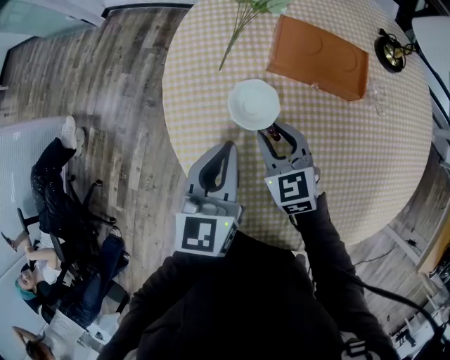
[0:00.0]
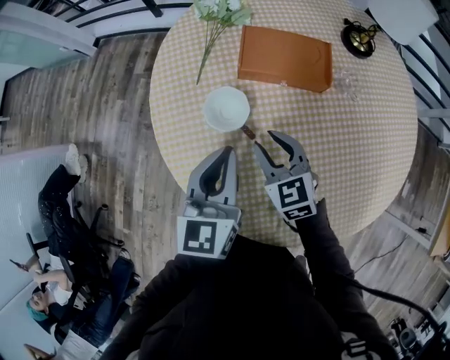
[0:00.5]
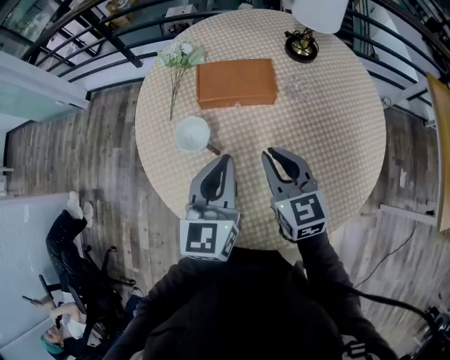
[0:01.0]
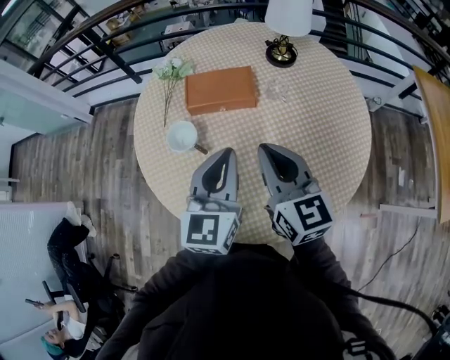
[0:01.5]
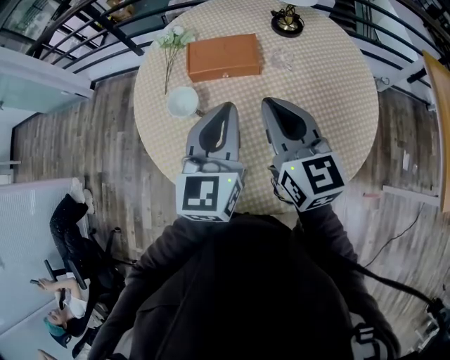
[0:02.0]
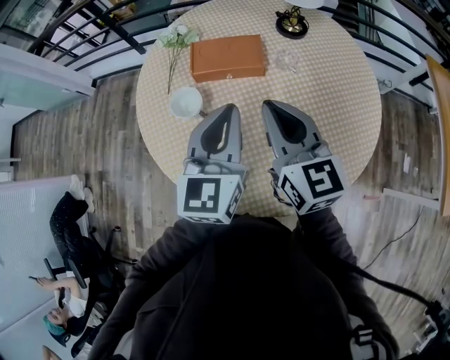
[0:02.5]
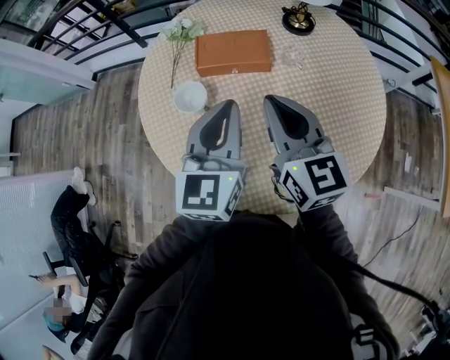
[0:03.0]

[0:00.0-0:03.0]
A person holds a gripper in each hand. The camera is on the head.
0:00.0 to 0:01.5: The right gripper shifts roughly 30 cm upward, to the right and backward, and rotates about 40 degrees. The left gripper goes roughly 25 cm to the right and upward, and rotates about 20 degrees.
0:01.5 to 0:03.0: The grippers move only a little.

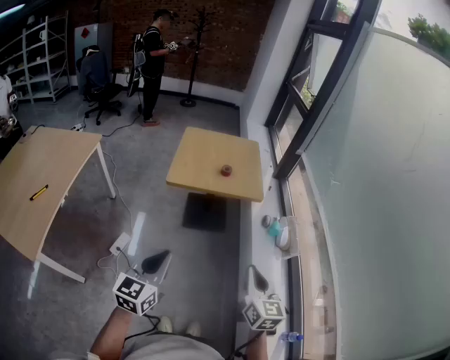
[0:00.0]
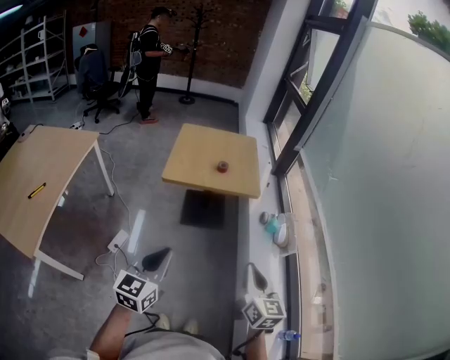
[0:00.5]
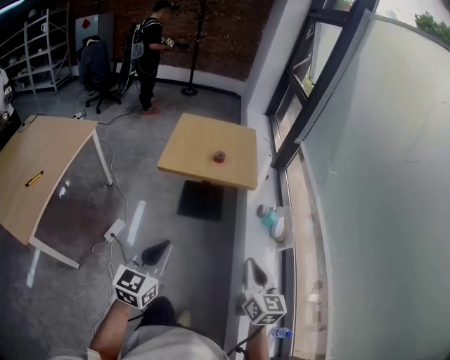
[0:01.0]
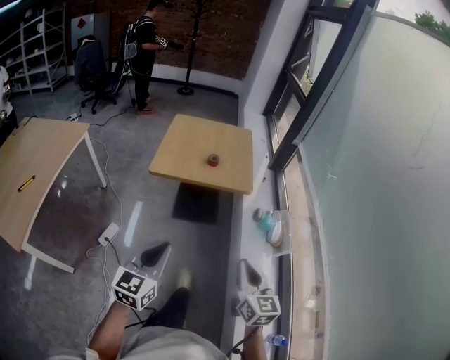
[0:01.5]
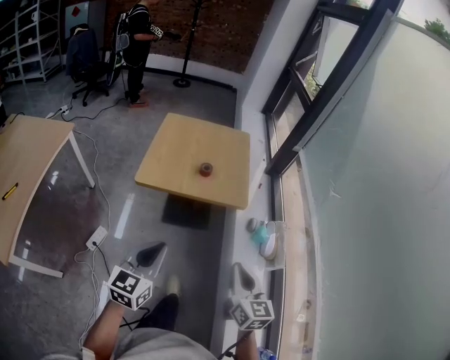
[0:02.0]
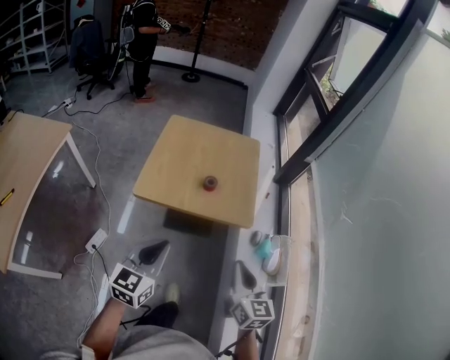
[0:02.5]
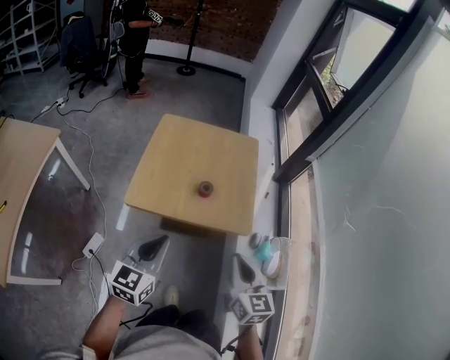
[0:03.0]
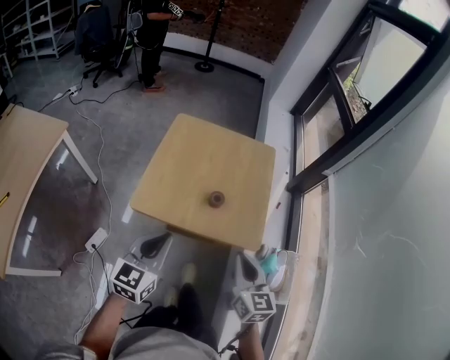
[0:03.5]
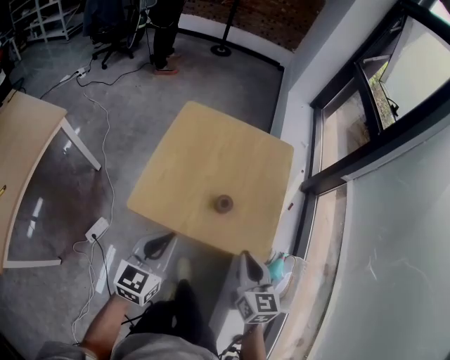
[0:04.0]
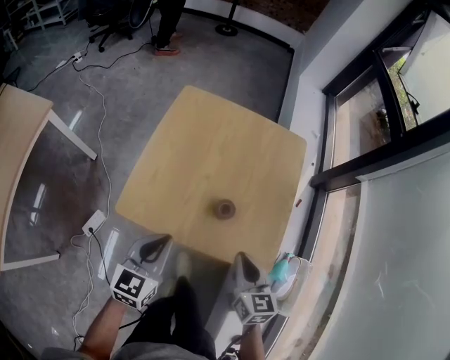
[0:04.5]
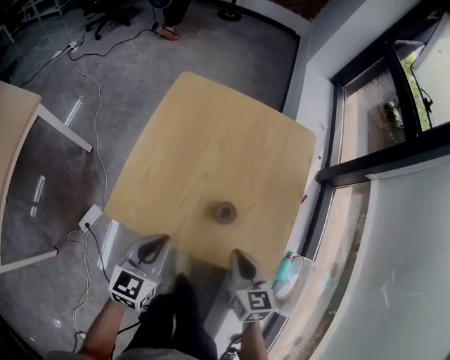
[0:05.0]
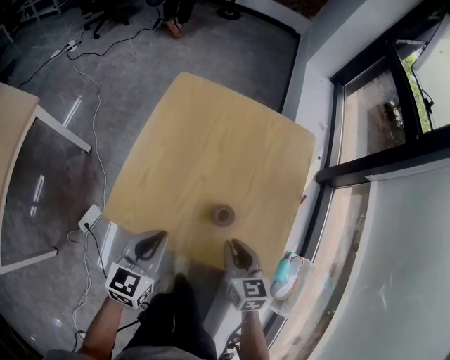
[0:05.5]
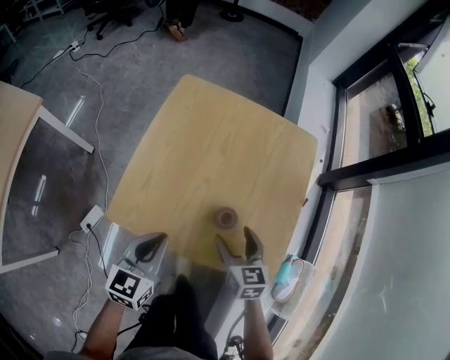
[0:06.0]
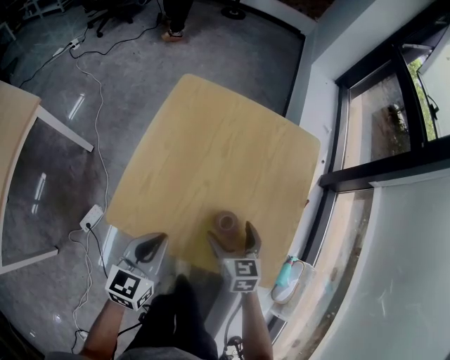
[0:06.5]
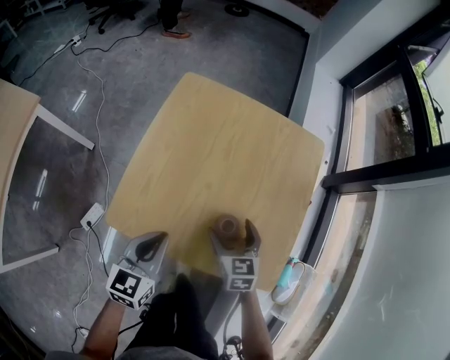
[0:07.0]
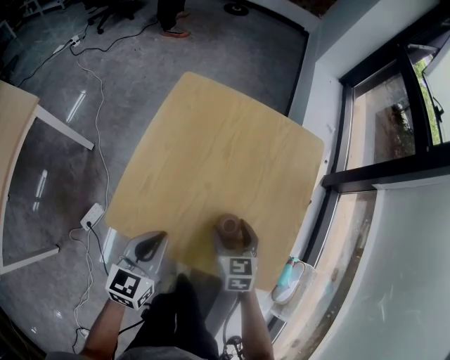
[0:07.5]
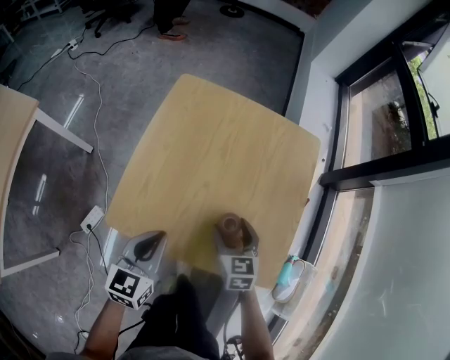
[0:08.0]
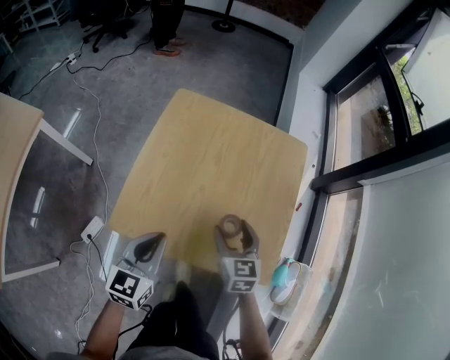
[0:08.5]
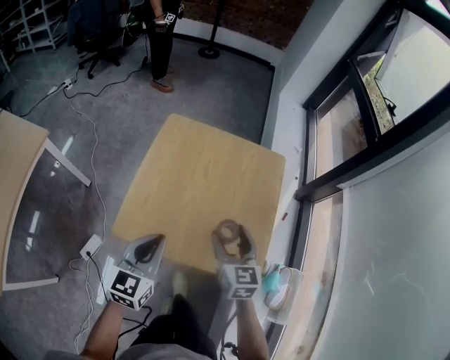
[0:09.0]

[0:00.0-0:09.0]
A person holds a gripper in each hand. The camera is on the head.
0:00.0 to 0:02.0: The right gripper shifts about 15 cm forward. Meanwhile the left gripper goes approximately 20 cm forward and to the right.
0:02.0 to 0:04.5: The two grippers go about 40 cm forward and downward. The right gripper changes its angle by approximately 20 degrees.
0:04.5 to 0:07.0: The left gripper heads forward and downward, covering about 10 cm, while the right gripper is displaced forward and downward by some 20 cm, and opens its fingers.
0:07.0 to 0:09.0: Both grippers travel together upward, roughly 15 cm.

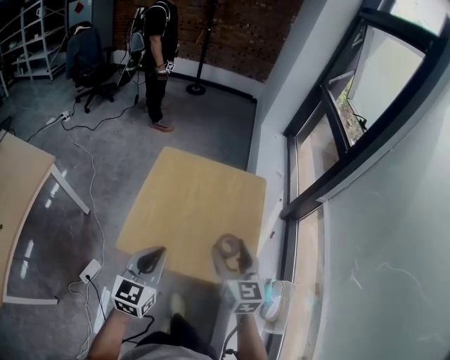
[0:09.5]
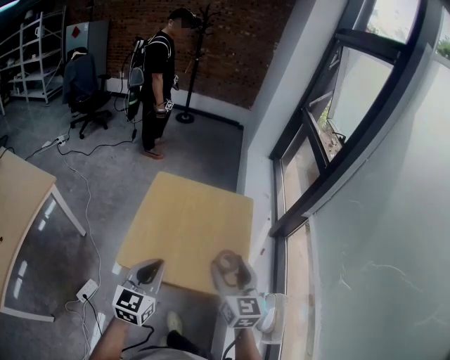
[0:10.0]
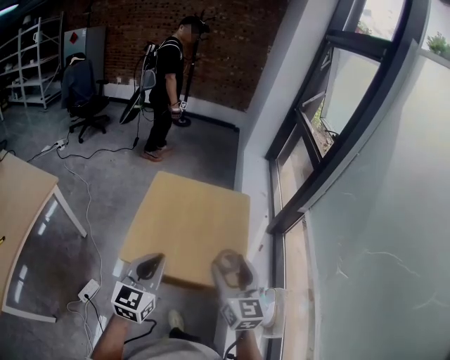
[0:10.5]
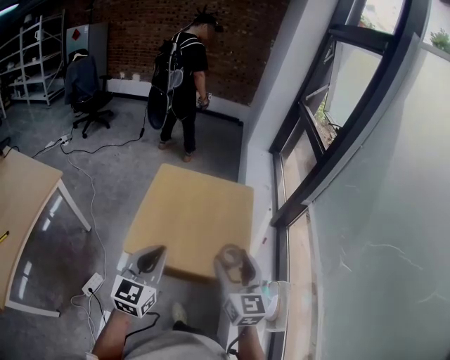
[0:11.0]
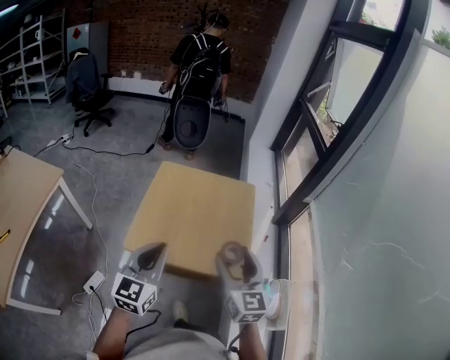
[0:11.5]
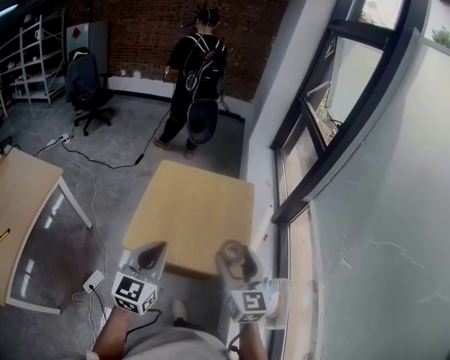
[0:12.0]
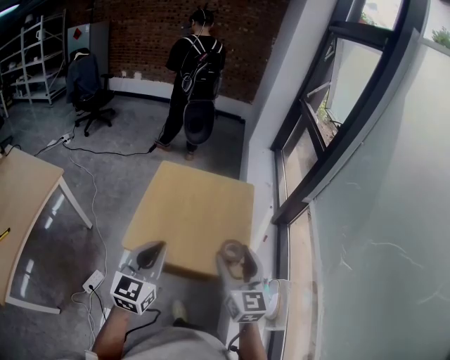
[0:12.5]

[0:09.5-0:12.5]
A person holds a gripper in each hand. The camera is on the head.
0:09.5 to 0:11.0: The left gripper is displaced upward and backward by approximately 10 cm. Meanwhile the right gripper heads backward and upward, covering approximately 15 cm.
0:11.0 to 0:12.5: There are only small adjustments of the grippers.

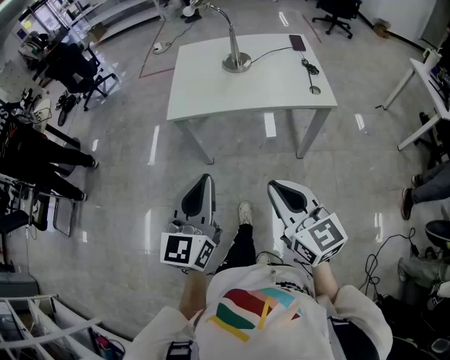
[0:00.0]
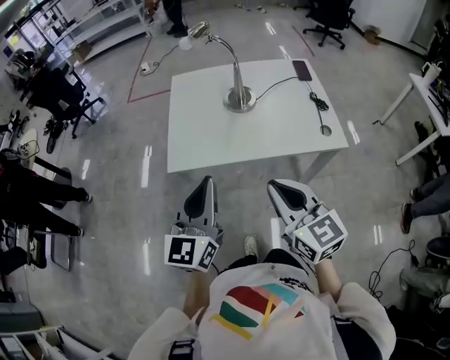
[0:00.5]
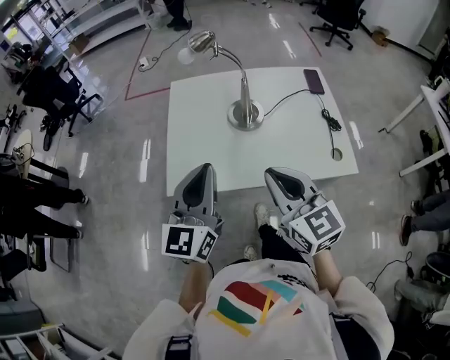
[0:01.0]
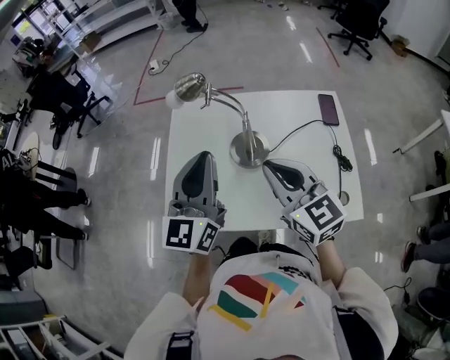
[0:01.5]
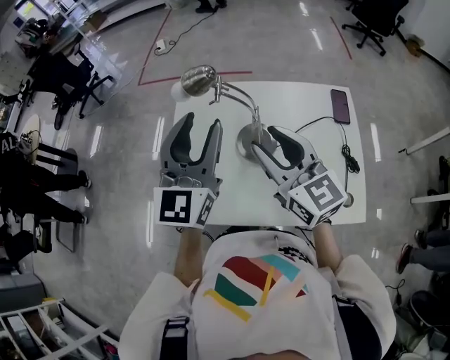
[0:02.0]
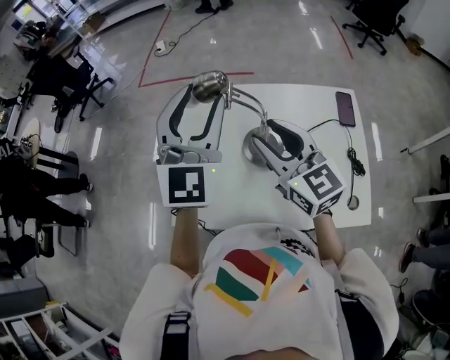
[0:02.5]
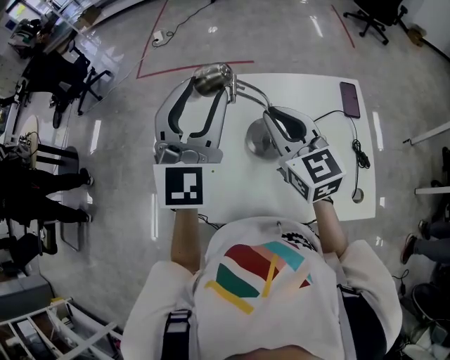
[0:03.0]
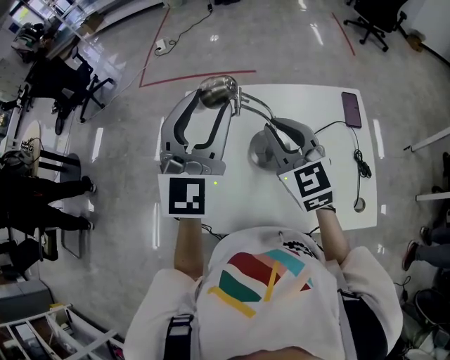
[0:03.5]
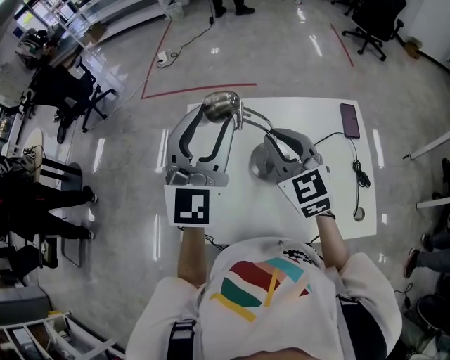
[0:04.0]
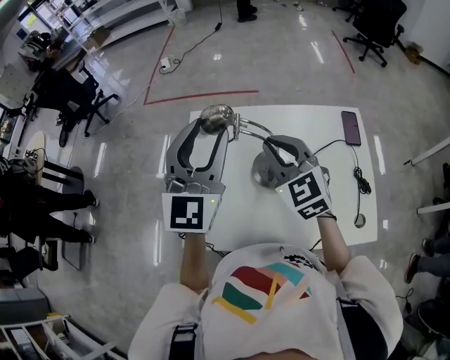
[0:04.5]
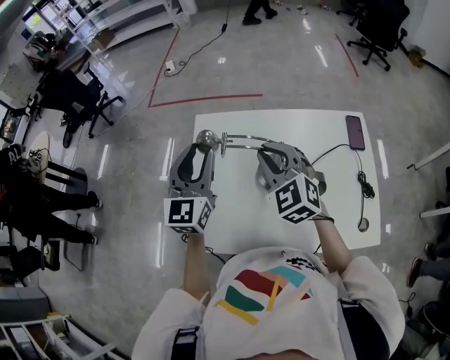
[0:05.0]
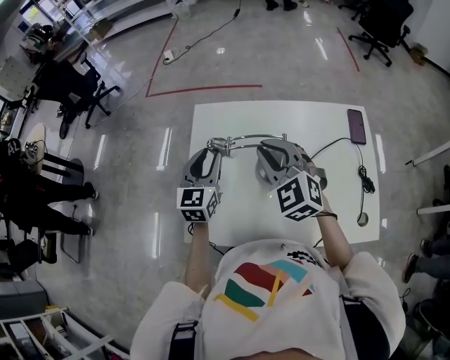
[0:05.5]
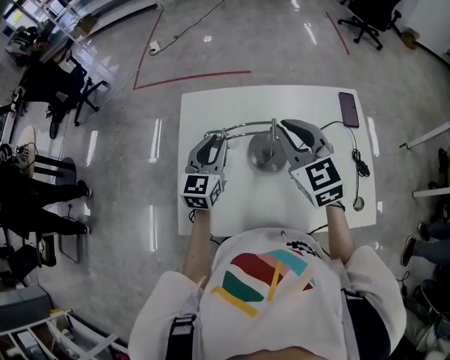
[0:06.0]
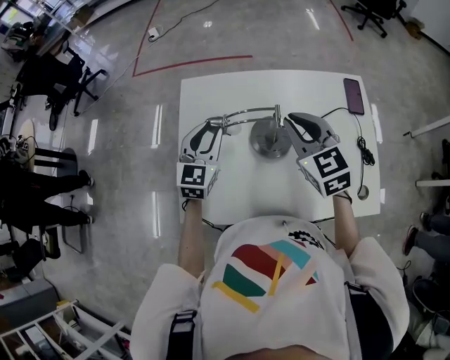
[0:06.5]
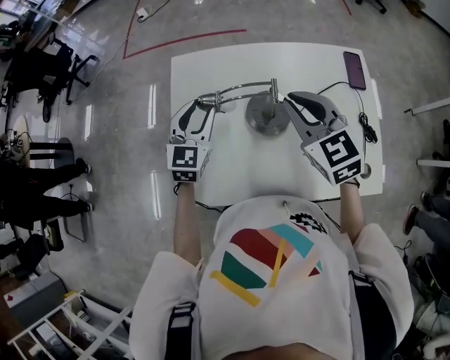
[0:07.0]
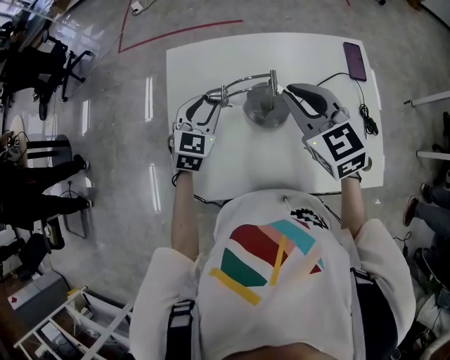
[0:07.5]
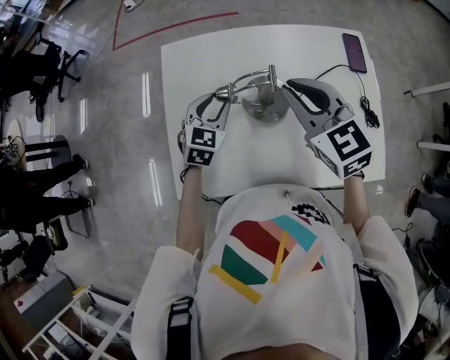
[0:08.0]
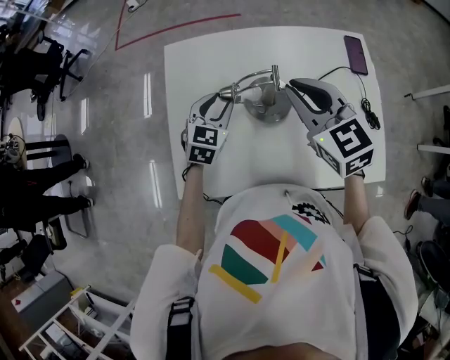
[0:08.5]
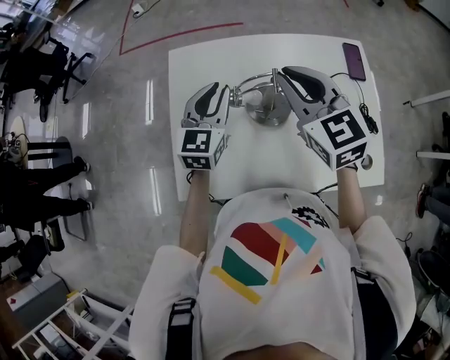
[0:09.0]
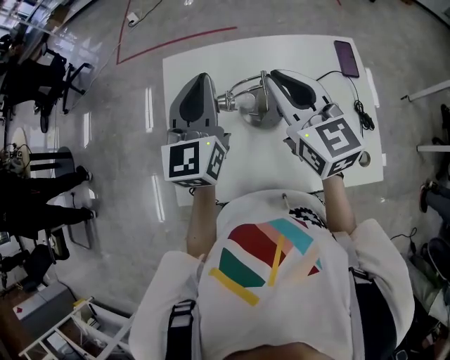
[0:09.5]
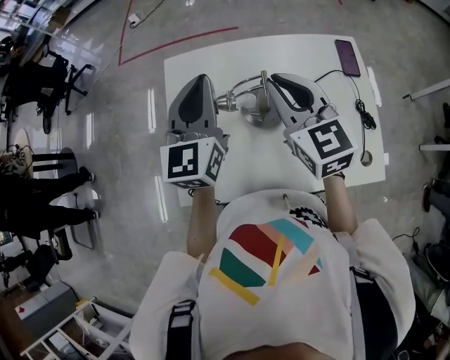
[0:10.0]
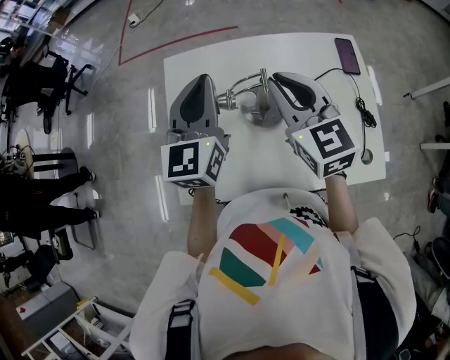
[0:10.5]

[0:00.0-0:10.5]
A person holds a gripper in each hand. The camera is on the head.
0:00.0 to 0:02.0: The two grippers travel together, forward, about 70 cm. The left gripper opens. Meanwhile the right gripper opens its fingers.
0:02.0 to 0:04.0: The two grippers go approximately 5 cm forward. The right gripper rotates approximately 20 degrees, and closes up.
0:04.0 to 0:06.5: The left gripper goes some 25 cm downward, and changes its angle by some 30 degrees; the right gripper is displaced downward by about 5 cm.
0:06.5 to 0:08.5: The left gripper moves downward, approximately 10 cm.
0:08.5 to 0:10.5: The left gripper is displaced upward by about 20 cm, tilts its fingers about 30 degrees upward, and closes its fingers.

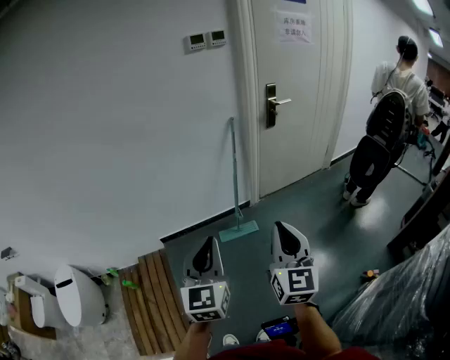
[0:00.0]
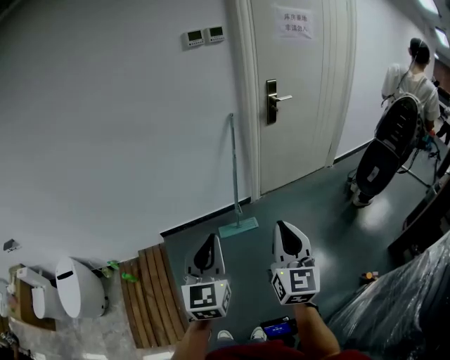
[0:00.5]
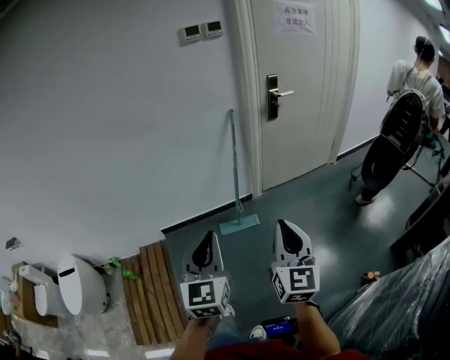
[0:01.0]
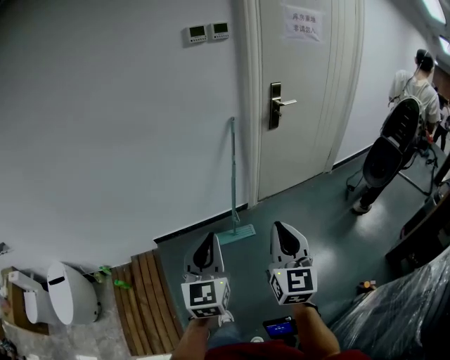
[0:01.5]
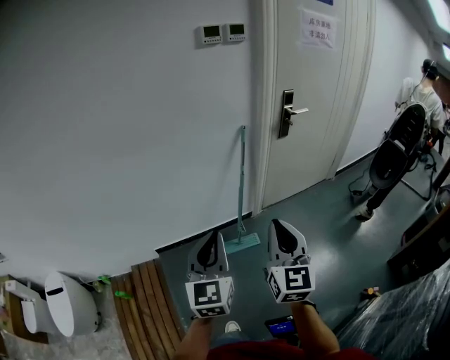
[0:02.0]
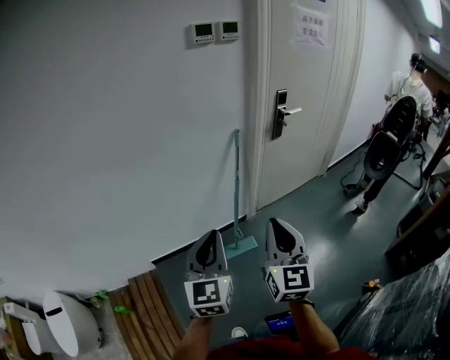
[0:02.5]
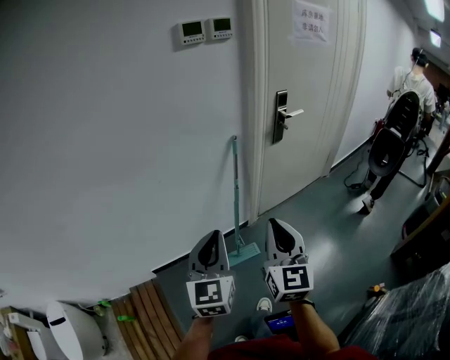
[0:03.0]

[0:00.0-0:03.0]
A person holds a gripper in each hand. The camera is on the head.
0:00.0 to 0:01.5: Both grippers travel together forward, some 10 cm.
0:01.5 to 0:03.0: The left gripper is displaced forward by some 25 cm. Meanwhile the right gripper moves forward and to the left, roughly 25 cm.